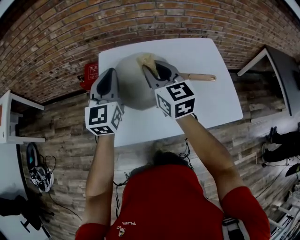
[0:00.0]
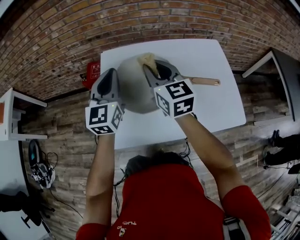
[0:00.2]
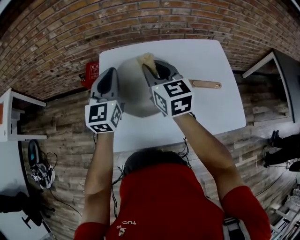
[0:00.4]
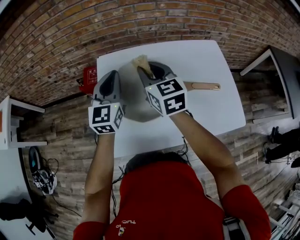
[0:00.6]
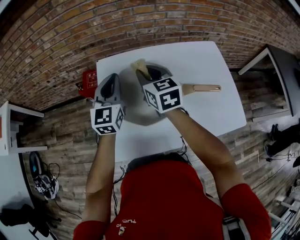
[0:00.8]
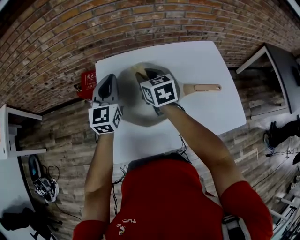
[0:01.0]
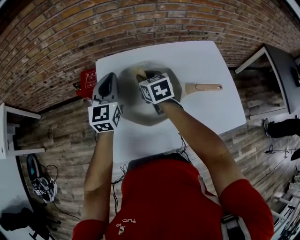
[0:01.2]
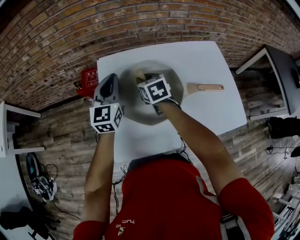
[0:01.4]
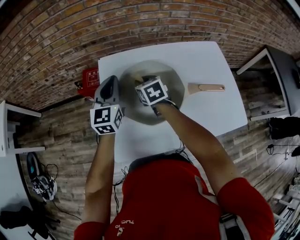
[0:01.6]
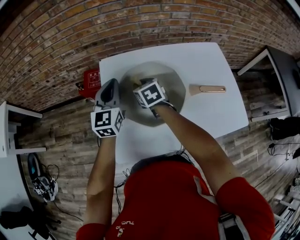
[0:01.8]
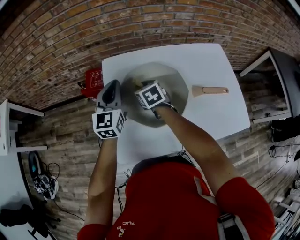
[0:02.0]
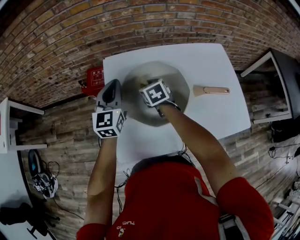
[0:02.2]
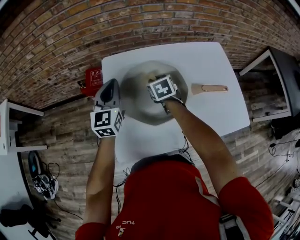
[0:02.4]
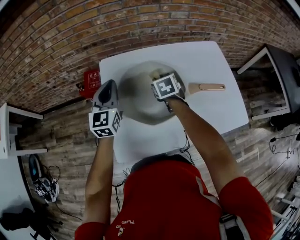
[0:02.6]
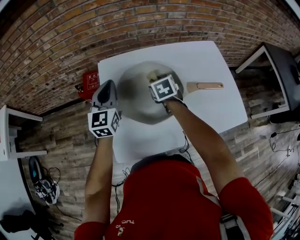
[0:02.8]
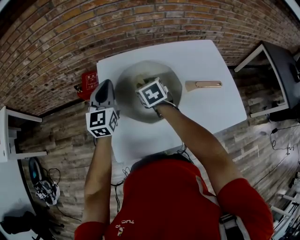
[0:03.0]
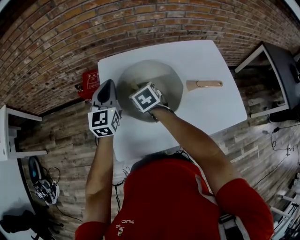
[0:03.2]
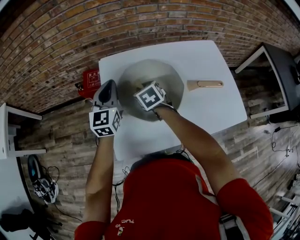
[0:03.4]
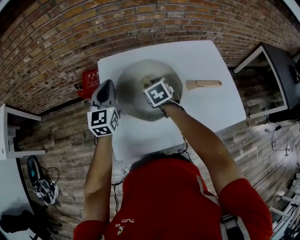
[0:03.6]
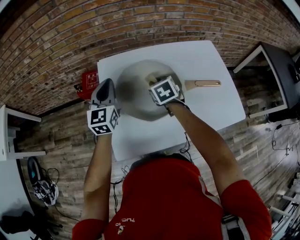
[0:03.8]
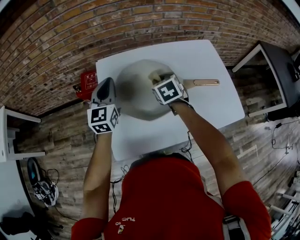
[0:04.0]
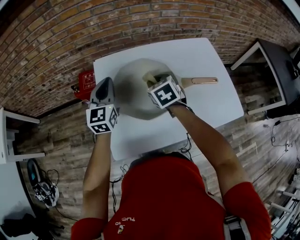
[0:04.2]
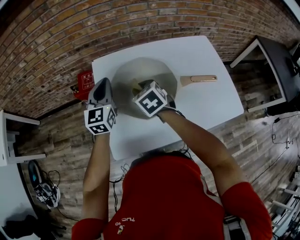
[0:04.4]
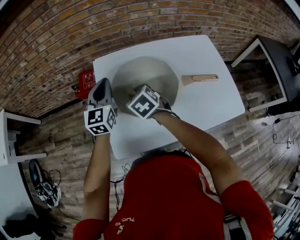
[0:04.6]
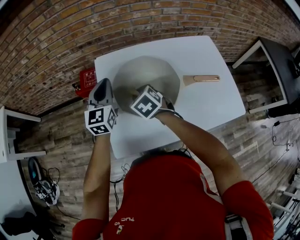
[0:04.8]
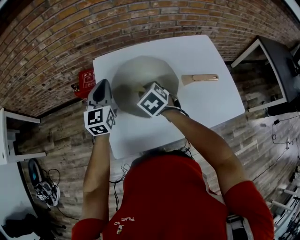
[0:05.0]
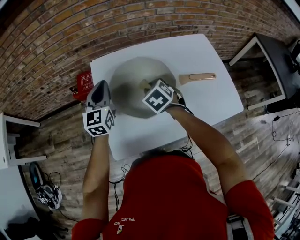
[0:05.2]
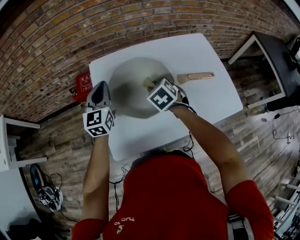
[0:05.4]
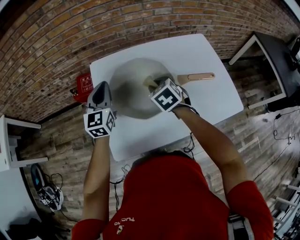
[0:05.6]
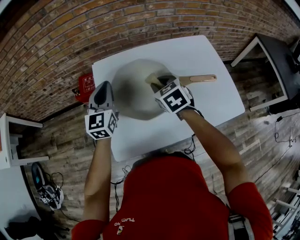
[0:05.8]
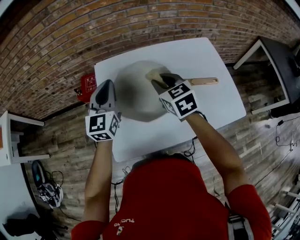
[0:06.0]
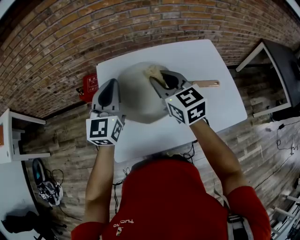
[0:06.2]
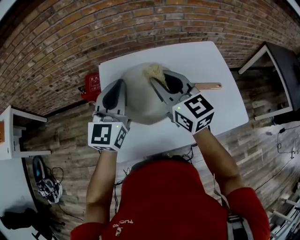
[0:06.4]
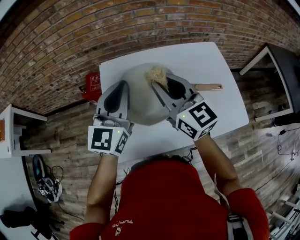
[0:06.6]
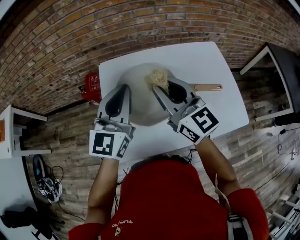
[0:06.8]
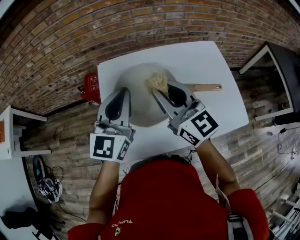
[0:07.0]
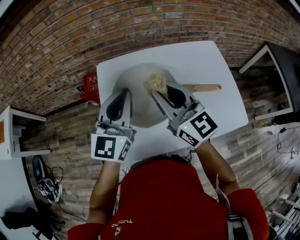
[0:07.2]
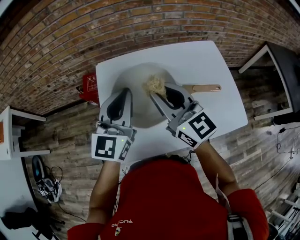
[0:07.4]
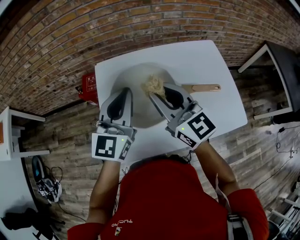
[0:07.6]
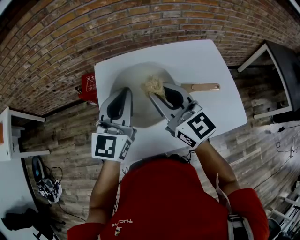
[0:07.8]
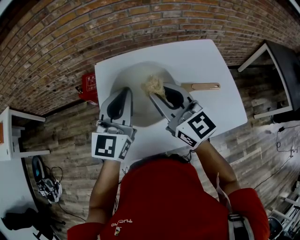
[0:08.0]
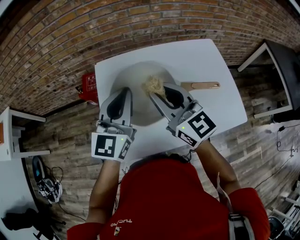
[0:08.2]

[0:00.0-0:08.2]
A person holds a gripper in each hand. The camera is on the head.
0:00.0 to 0:01.6: The right gripper shifts roughly 20 cm downward and forward, and points its fingers approximately 30 degrees further downward; the left gripper is displaced forward and downward by some 15 cm.
0:01.6 to 0:03.2: The right gripper reaches some 10 cm to the right, then returns.
0:03.2 to 0:05.0: The right gripper swings left and right, roughly 10 cm each way, with 2 reversals.
0:05.0 to 0:06.6: The left gripper travels upward, to the right and backward by some 15 cm, while the right gripper shifts some 20 cm upward, and tips its fingers upward by approximately 50 degrees.
0:06.6 to 0:08.2: The grippers make only small movements.

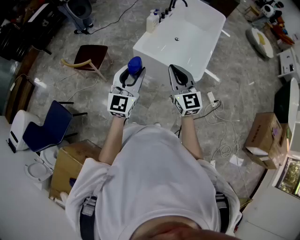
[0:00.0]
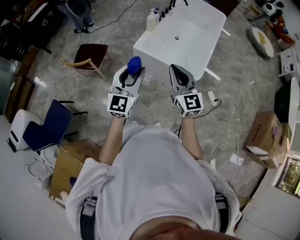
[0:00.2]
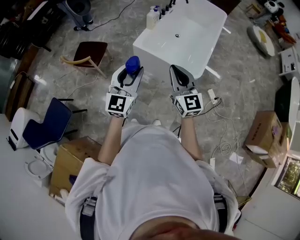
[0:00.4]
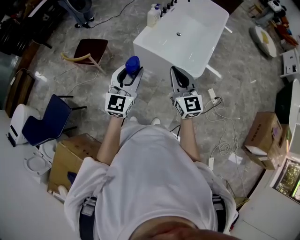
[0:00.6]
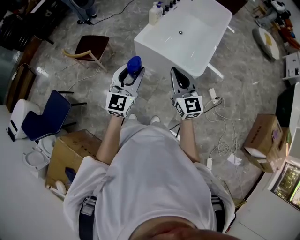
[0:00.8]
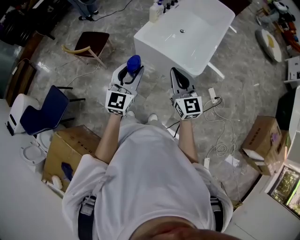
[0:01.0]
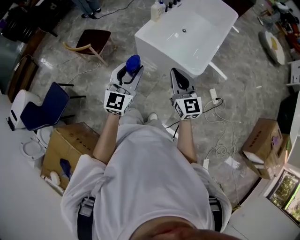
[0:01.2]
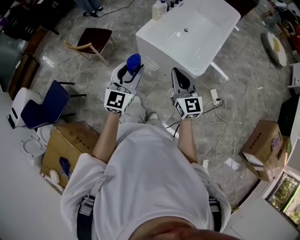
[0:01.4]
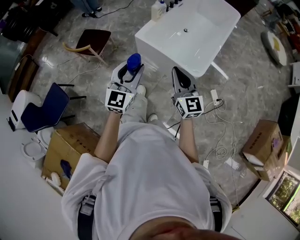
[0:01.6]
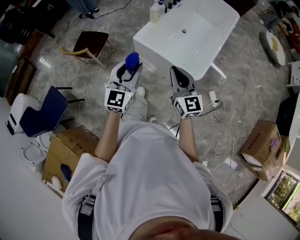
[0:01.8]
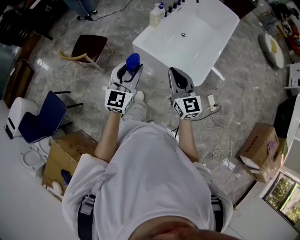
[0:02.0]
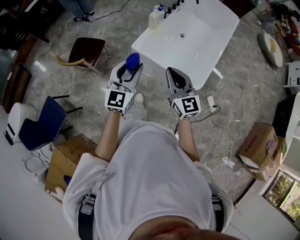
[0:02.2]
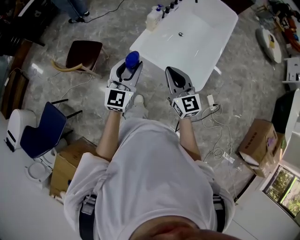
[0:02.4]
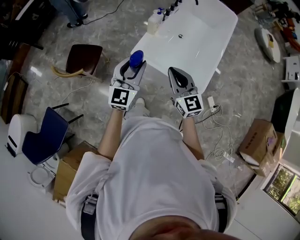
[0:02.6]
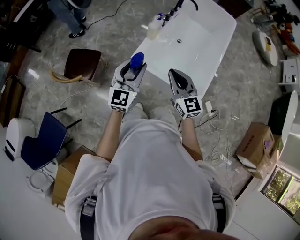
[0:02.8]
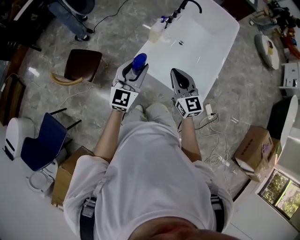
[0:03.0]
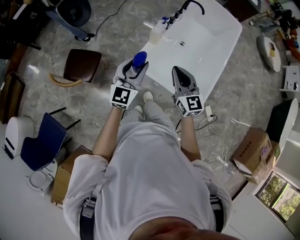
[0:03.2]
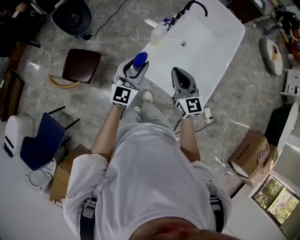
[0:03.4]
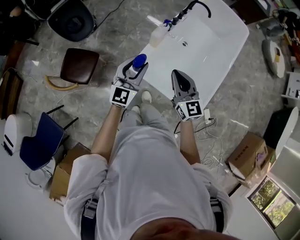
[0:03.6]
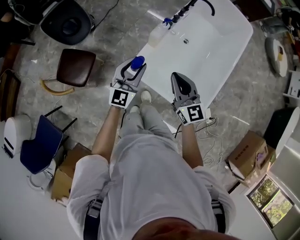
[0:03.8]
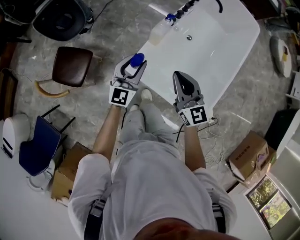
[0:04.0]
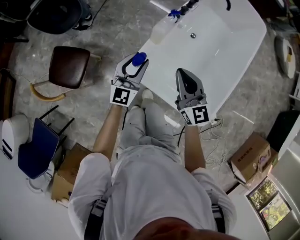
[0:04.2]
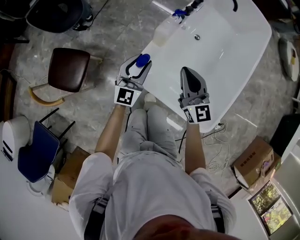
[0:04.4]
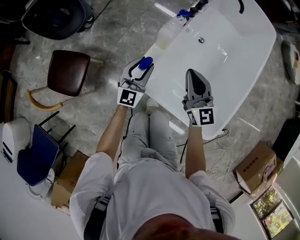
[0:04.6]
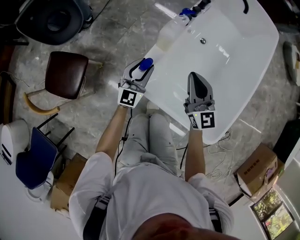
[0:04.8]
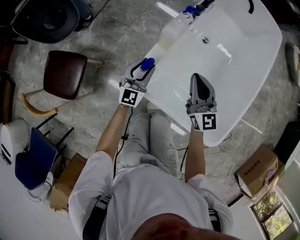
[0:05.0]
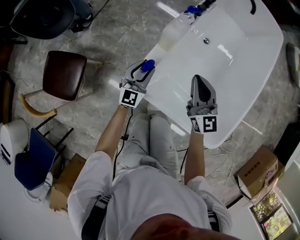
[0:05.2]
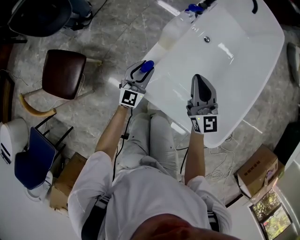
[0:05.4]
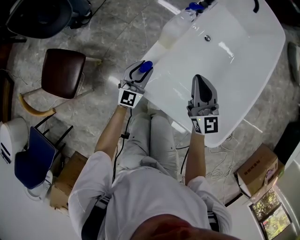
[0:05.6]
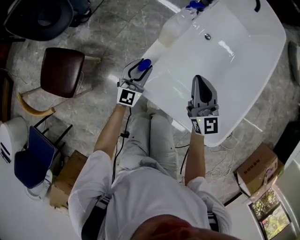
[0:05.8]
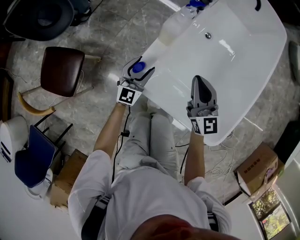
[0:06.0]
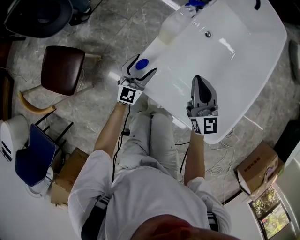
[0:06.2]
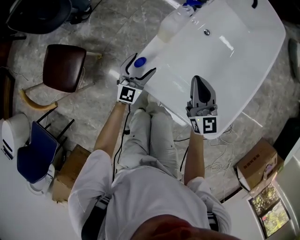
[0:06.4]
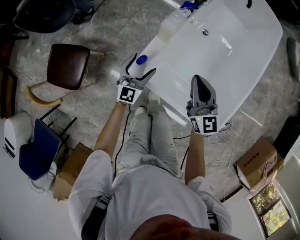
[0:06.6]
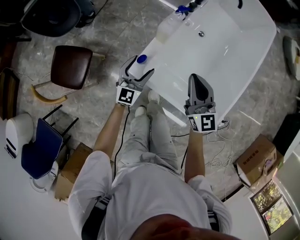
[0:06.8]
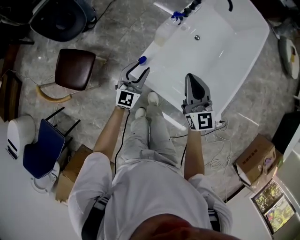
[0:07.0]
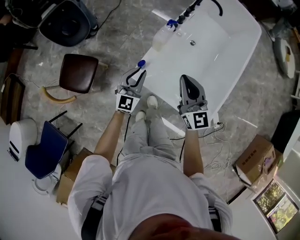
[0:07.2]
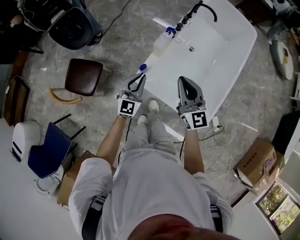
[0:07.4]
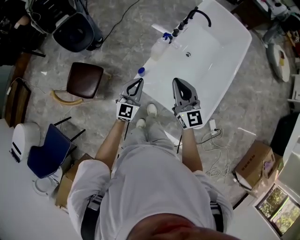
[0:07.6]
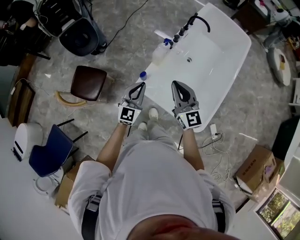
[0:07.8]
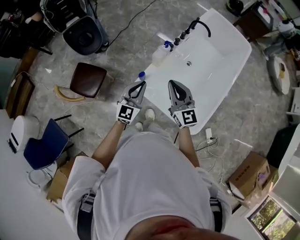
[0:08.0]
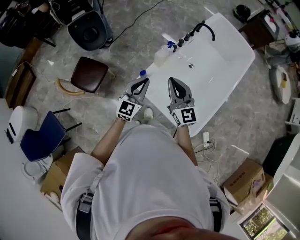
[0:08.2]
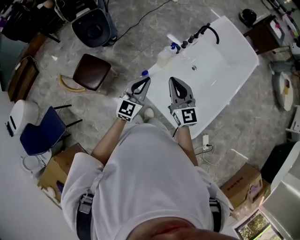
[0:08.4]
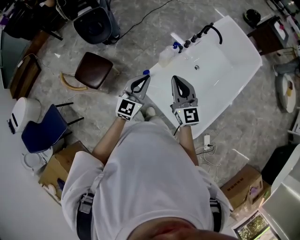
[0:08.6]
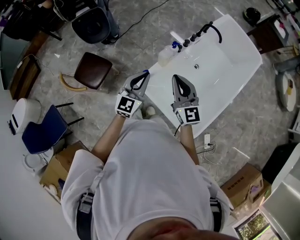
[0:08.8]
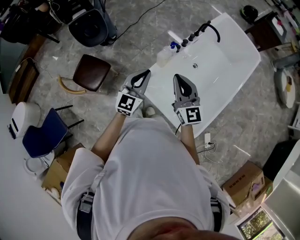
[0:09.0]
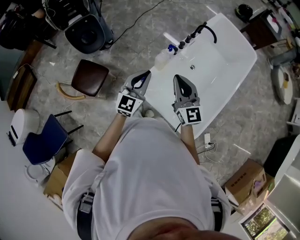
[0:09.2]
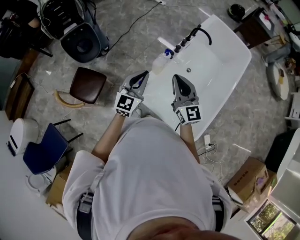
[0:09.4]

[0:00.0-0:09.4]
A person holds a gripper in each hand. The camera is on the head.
0:00.0 to 0:01.6: The right gripper moves to the right and downward, approximately 10 cm. The left gripper shifts approximately 5 cm to the right.
0:01.6 to 0:03.2: The two grippers go approximately 35 cm forward.
0:03.2 to 0:04.8: Both grippers move downward and forward, approximately 40 cm.
0:04.8 to 0:06.2: The left gripper heads downward, covering approximately 10 cm, and opens up.
0:06.2 to 0:07.8: Both grippers move upward, roughly 35 cm. The left gripper closes up.
0:07.8 to 0:09.4: The left gripper is displaced forward and upward by approximately 10 cm; the right gripper heads forward, covering about 10 cm.

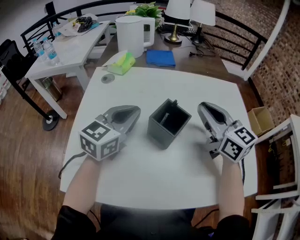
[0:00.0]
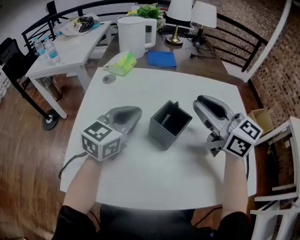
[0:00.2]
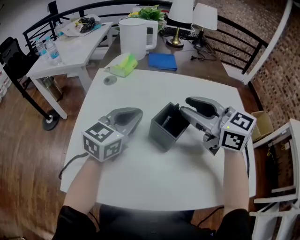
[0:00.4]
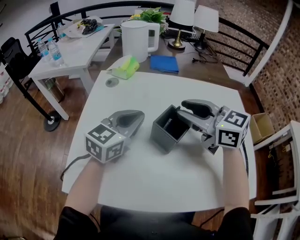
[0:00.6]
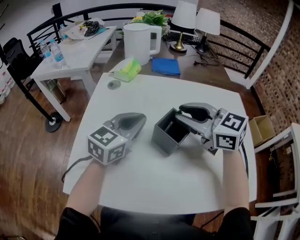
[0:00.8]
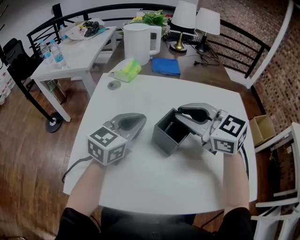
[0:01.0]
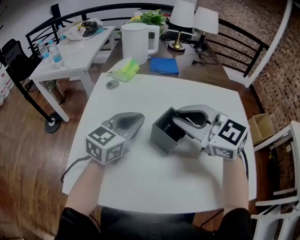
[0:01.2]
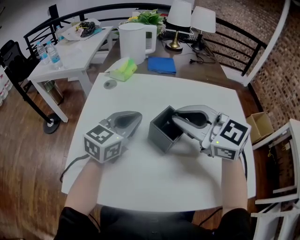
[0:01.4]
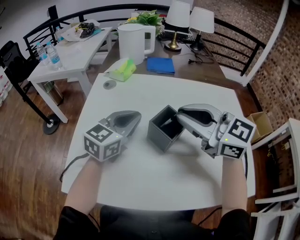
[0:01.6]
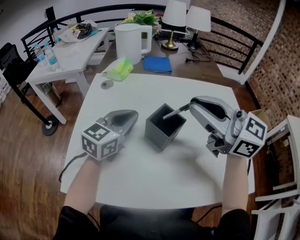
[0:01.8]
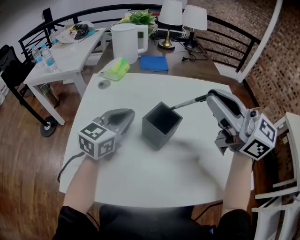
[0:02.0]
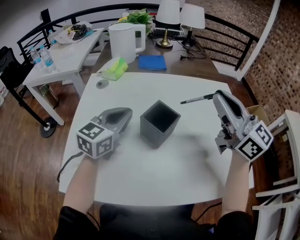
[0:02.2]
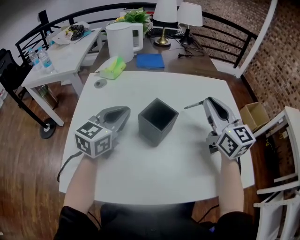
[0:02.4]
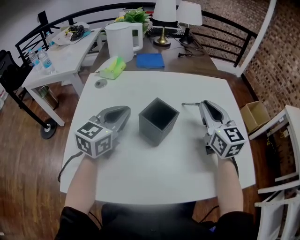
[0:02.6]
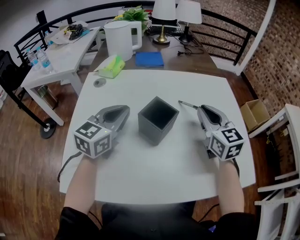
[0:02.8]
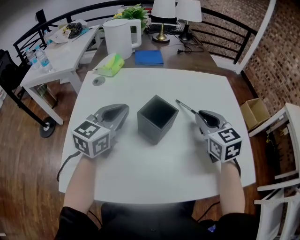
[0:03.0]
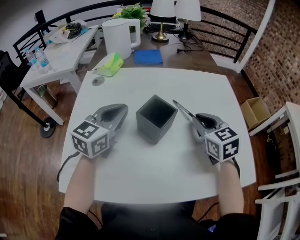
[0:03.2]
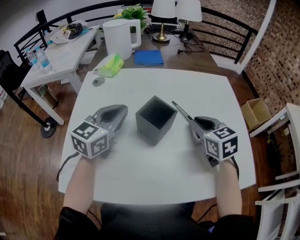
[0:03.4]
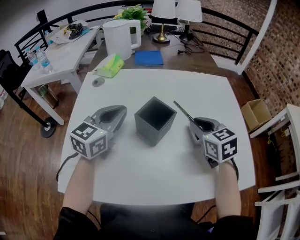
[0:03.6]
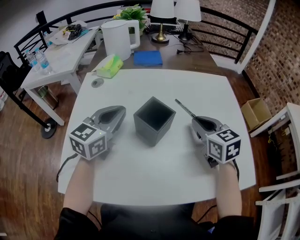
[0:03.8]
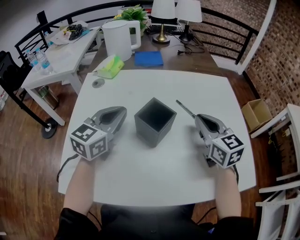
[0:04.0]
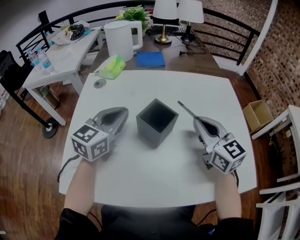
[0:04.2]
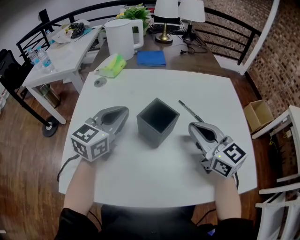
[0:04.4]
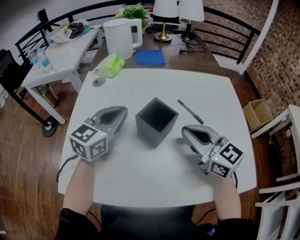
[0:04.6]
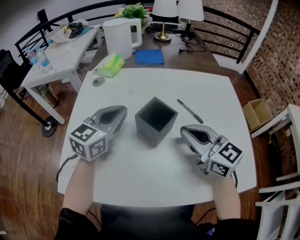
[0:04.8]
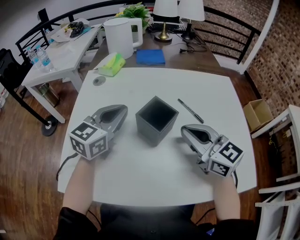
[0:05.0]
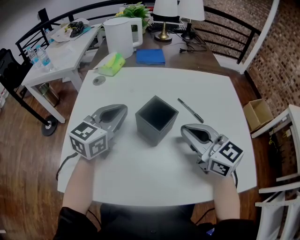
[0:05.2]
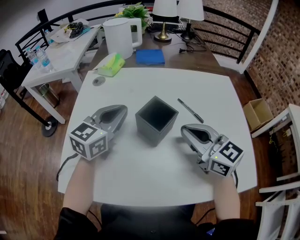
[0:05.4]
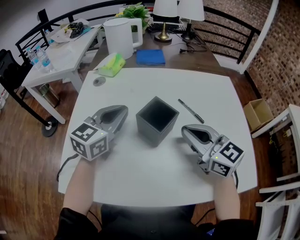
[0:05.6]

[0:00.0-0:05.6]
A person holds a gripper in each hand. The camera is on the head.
0:00.0 to 0:01.4: The right gripper moves to the left, about 10 cm, turns by approximately 30 degrees, and opens and closes again.
0:01.4 to 0:02.8: The right gripper travels to the right by roughly 15 cm, reaches roughly 10 cm upward, then returns, and changes its angle by approximately 40 degrees.
0:04.2 to 0:05.6: The right gripper goes roughly 5 cm to the left.
